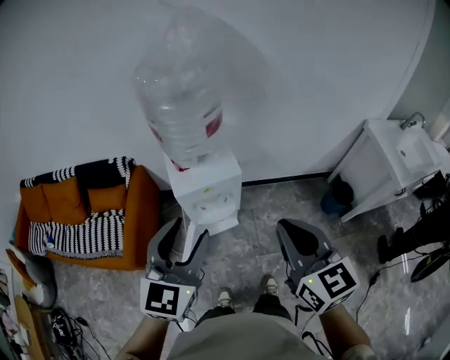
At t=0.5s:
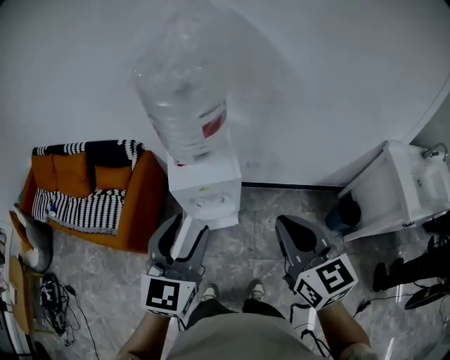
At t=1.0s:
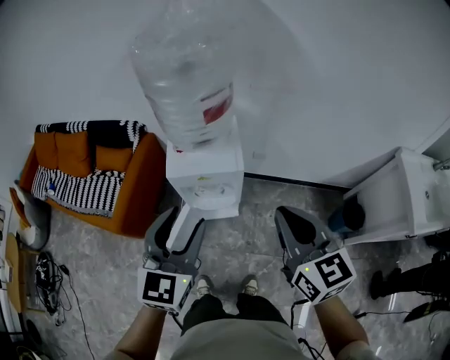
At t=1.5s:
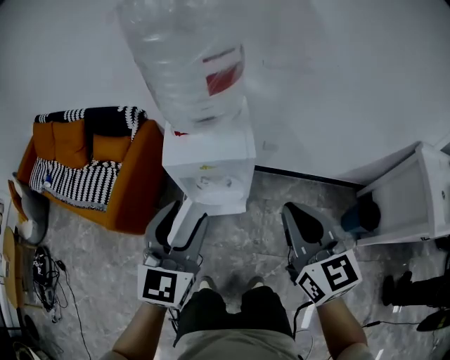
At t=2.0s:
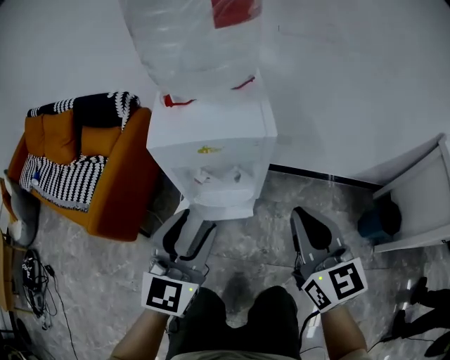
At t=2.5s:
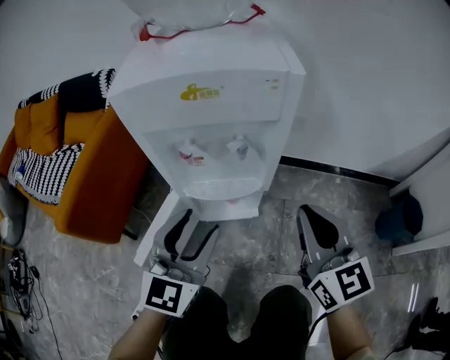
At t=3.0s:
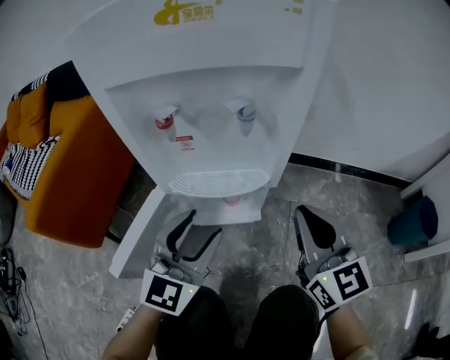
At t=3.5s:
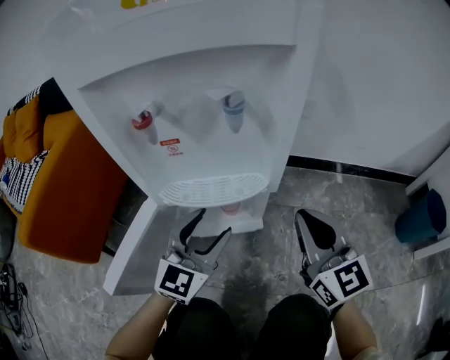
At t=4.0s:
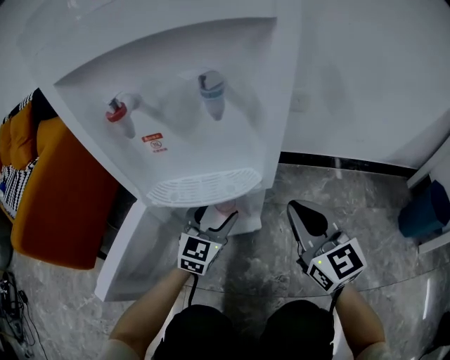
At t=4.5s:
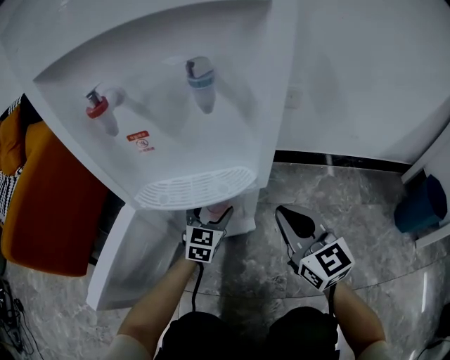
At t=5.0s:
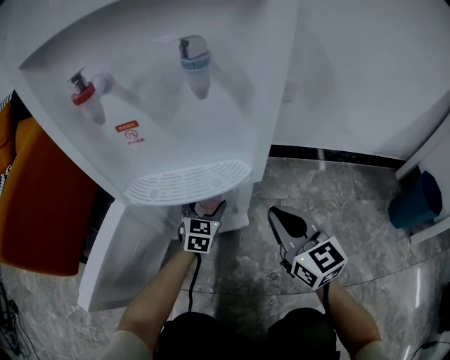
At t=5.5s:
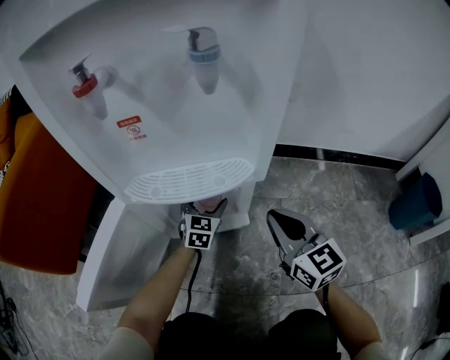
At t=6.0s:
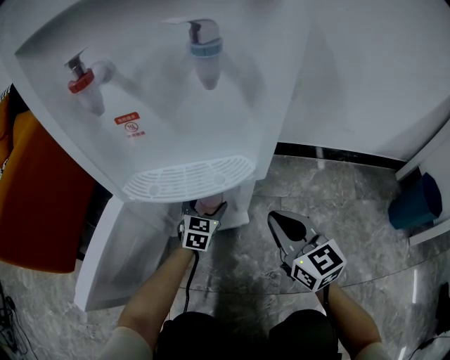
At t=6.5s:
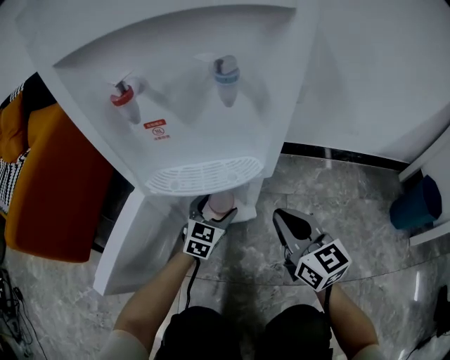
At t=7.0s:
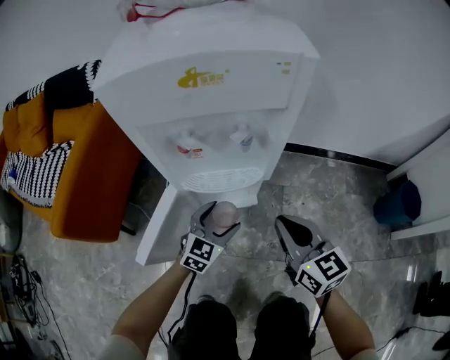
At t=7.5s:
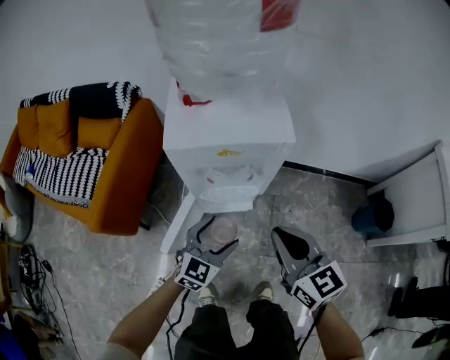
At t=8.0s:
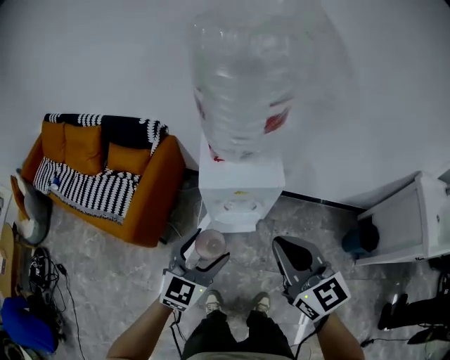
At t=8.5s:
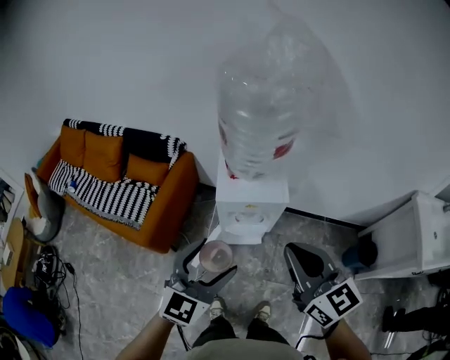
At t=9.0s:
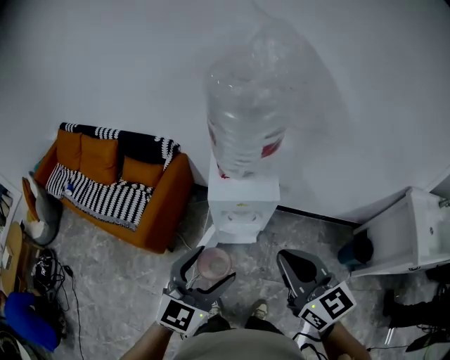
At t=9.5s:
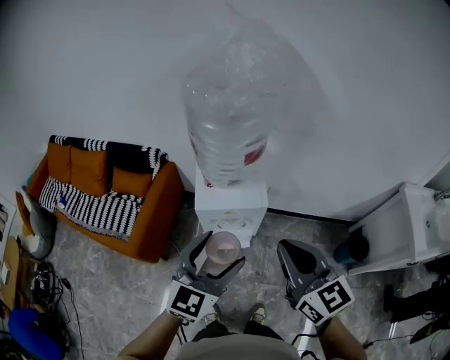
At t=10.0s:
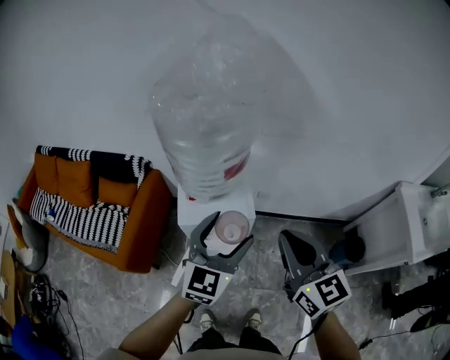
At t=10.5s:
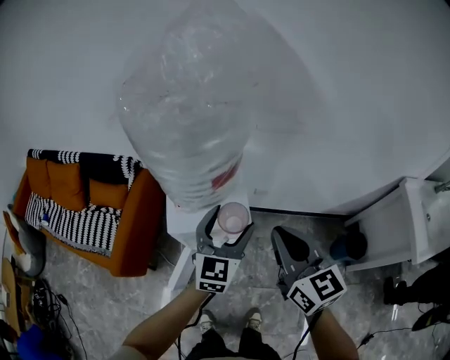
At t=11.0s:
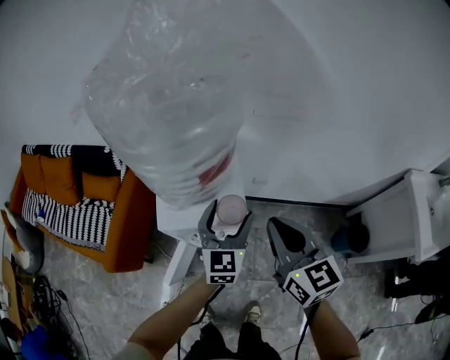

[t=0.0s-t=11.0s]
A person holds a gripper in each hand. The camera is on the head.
t=0.0s to t=2.0s: The right gripper shifts roughly 35 cm downward and forward, while the left gripper heads downward, covering about 35 cm.
t=2.0s to t=3.5s: Both grippers travel together downward, about 40 cm.
t=3.5s to t=5.5s: The right gripper goes roughly 15 cm downward. Meanwhile the left gripper shifts about 30 cm downward and forward.
t=5.5s to t=7.5s: The left gripper moves upward and backward, approximately 50 cm. The right gripper shifts some 40 cm upward.
t=7.5s to t=9.0s: The grippers both shift upward by roughly 40 cm.
t=9.0s to t=11.0s: The two grippers go about 30 cm forward, to the right and downward.

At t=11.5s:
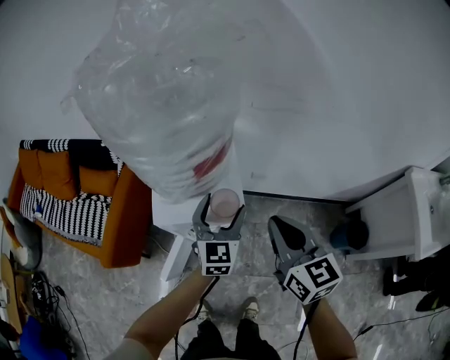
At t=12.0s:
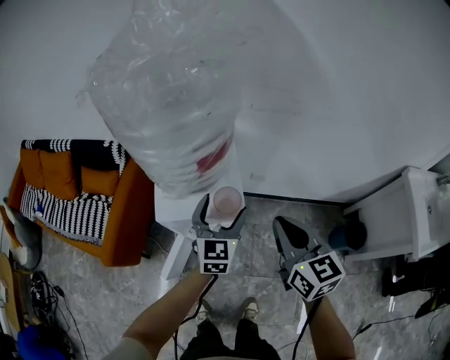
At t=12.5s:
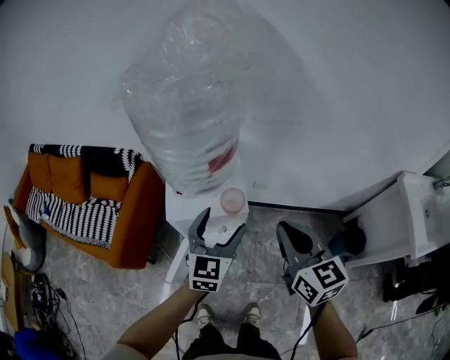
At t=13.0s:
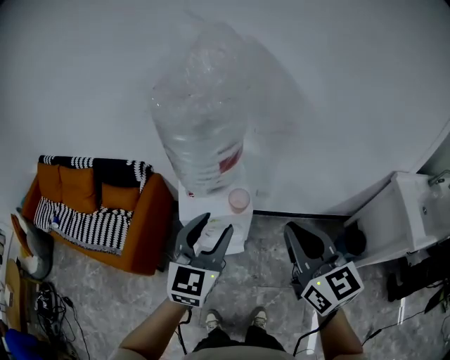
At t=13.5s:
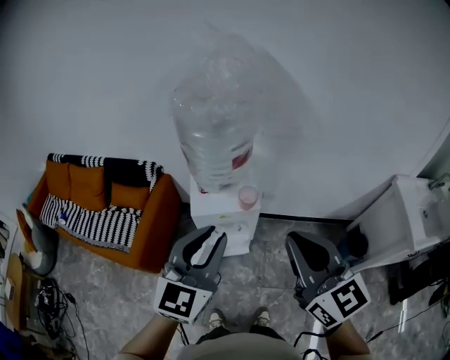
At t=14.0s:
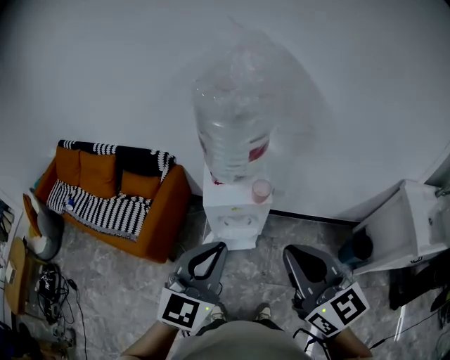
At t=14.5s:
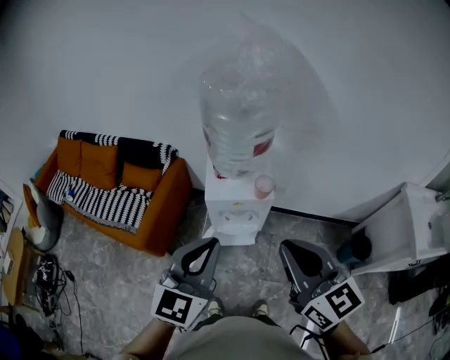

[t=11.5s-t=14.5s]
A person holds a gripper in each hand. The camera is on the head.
t=11.5s to t=13.0s: Both grippers move upward and backward, roughly 25 cm. The left gripper closes.
t=13.0s to t=14.5s: Both grippers travel together backward and to the left, about 15 cm. The left gripper closes up.

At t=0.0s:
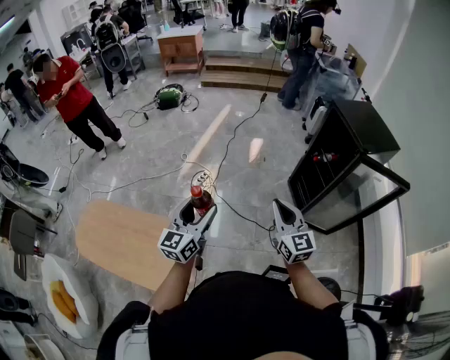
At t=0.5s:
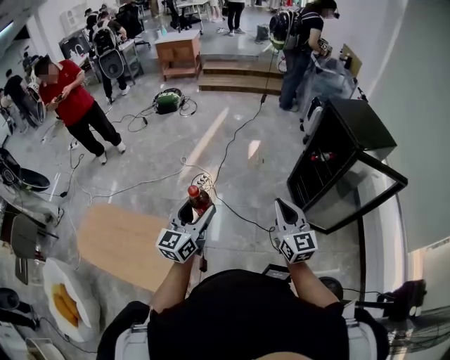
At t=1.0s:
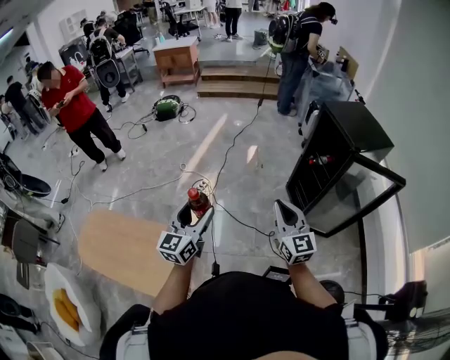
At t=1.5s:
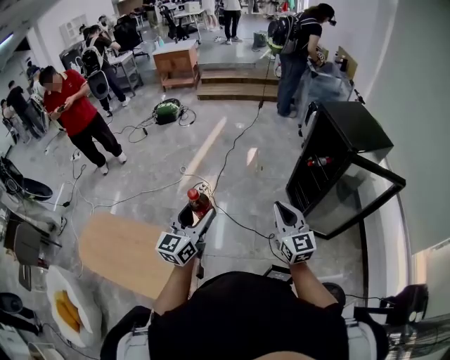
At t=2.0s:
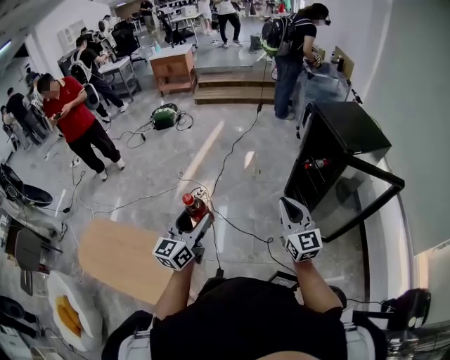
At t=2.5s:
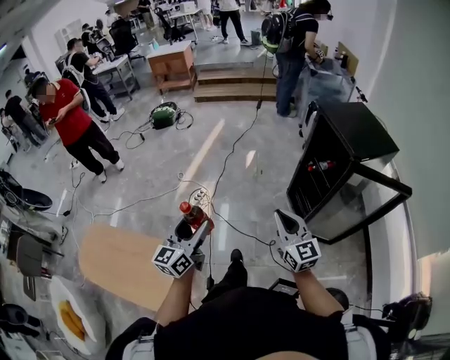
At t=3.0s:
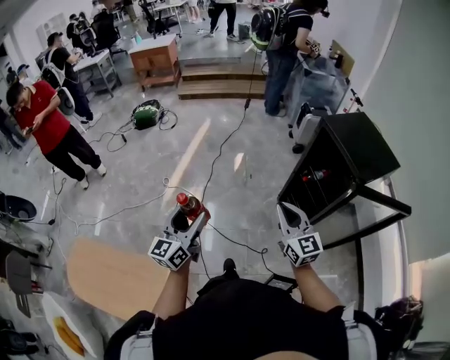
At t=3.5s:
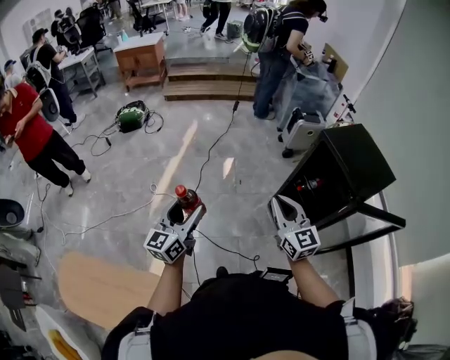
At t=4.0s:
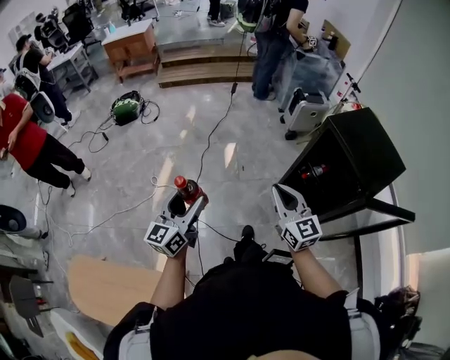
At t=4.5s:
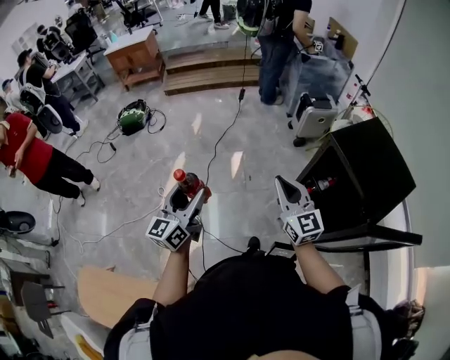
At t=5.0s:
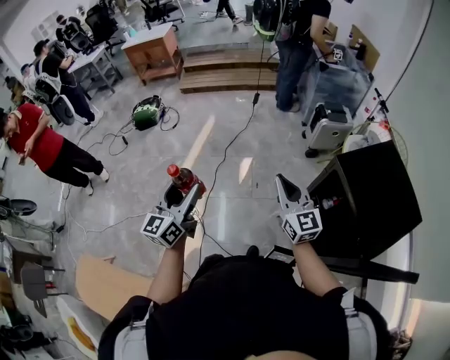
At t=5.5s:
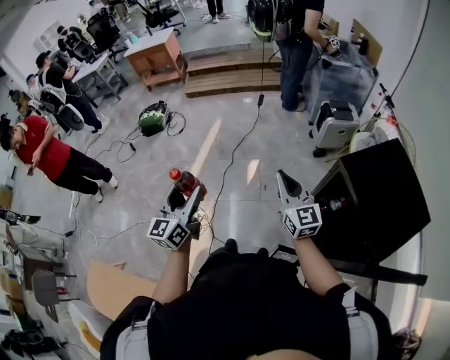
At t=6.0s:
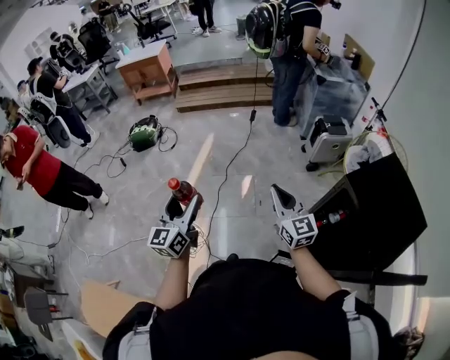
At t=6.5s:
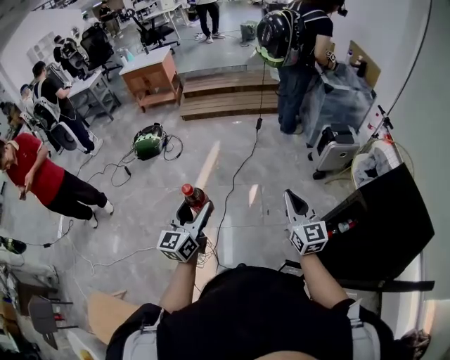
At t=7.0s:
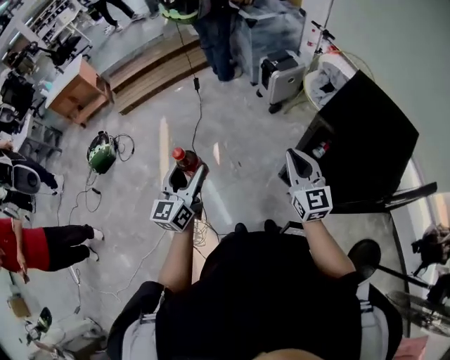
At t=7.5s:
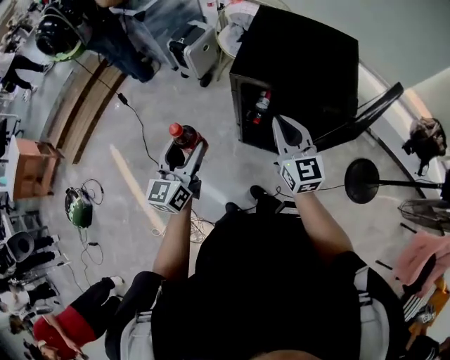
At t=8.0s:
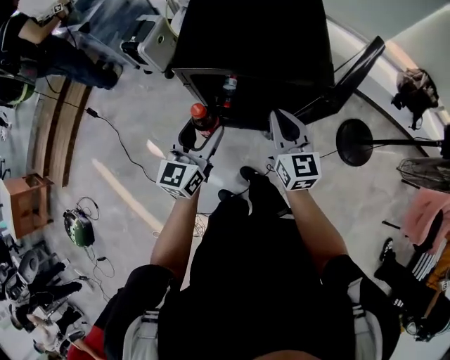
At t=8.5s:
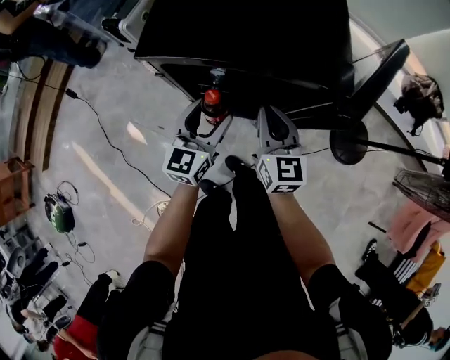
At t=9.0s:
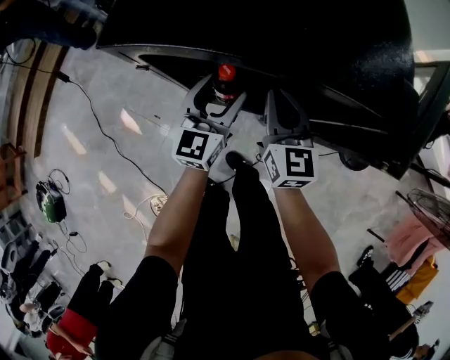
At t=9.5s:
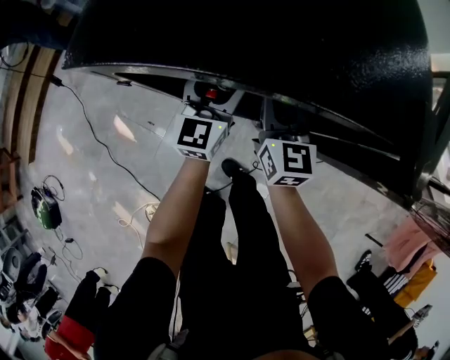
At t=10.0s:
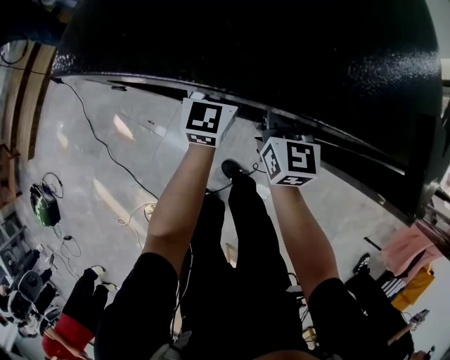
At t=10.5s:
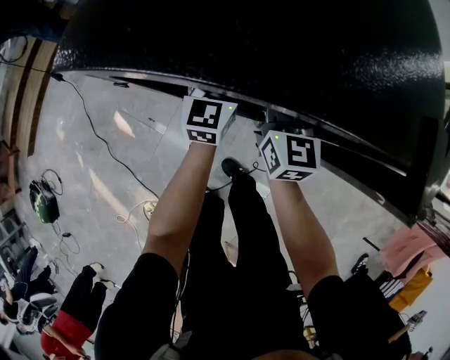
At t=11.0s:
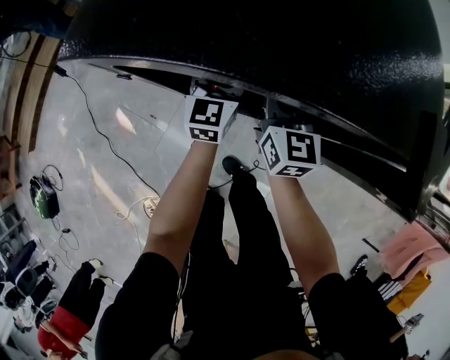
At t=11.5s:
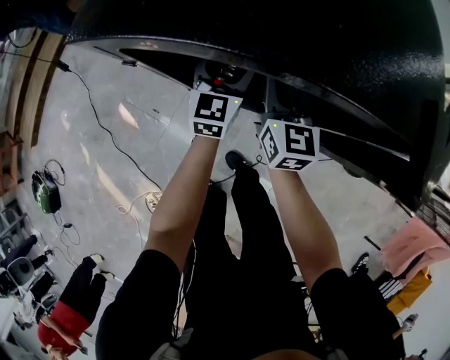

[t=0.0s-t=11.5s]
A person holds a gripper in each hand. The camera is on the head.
t=0.0s to t=2.0s: The left gripper goes roughly 5 cm to the right, while the right gripper moves to the right, about 10 cm.
t=2.0s to t=4.0s: Both grippers travel together forward, some 35 cm.
t=4.0s to t=6.0s: The grippers both shift forward by roughly 25 cm.
t=6.0s to t=7.5s: The left gripper shifts by approximately 35 cm, and turns by about 60 degrees; the right gripper shifts by roughly 30 cm, and swivels some 60 degrees.
t=7.5s to t=9.5s: The left gripper goes approximately 40 cm forward, downward and to the right, while the right gripper moves downward and forward, approximately 30 cm, and turns by some 20 degrees.
t=9.5s to t=11.5s: The grippers make only small movements.

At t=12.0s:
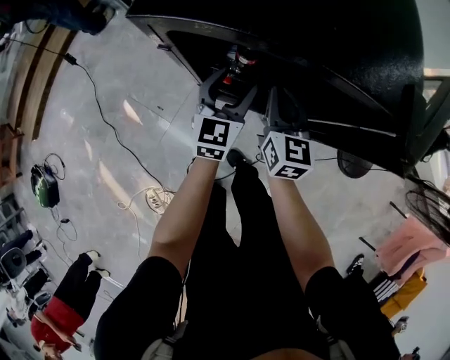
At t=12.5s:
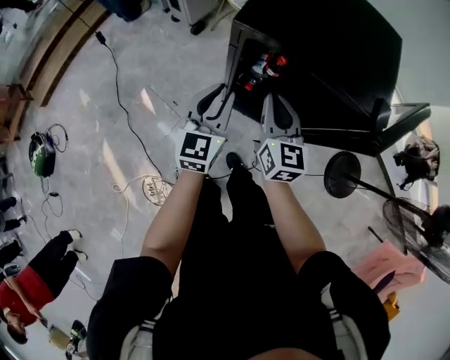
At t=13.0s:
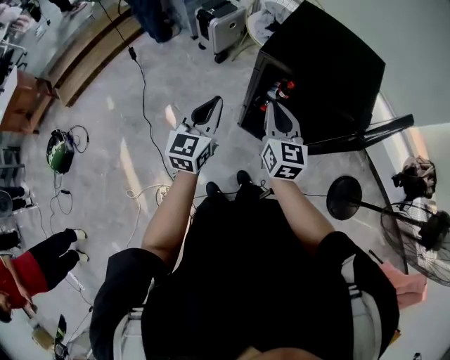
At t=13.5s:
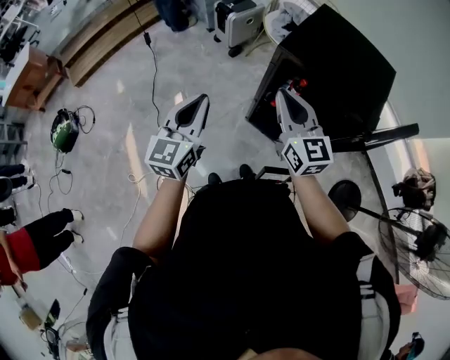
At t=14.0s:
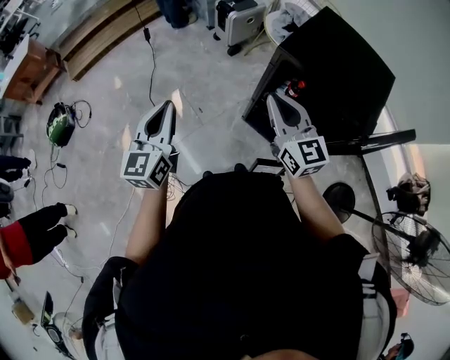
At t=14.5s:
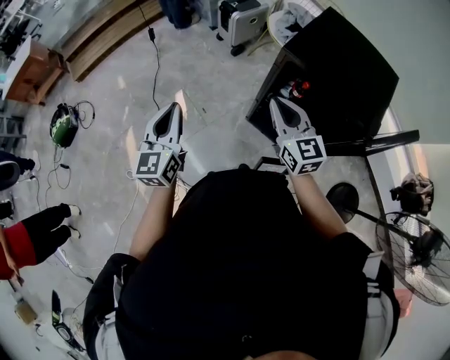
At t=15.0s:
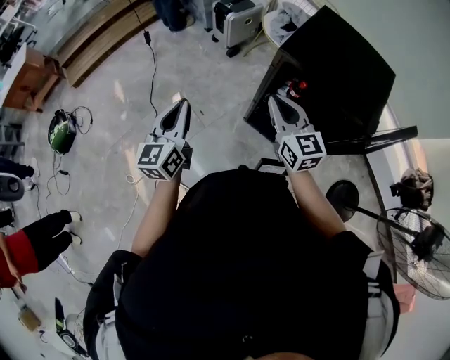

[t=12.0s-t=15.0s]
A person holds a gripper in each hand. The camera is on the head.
t=12.0s to t=13.5s: The right gripper goes about 30 cm upward, and changes its angle by some 40 degrees. Meanwhile the left gripper ends up approximately 50 cm from where it was, swivels about 20 degrees, and closes its fingers.
t=13.5s to t=15.0s: The right gripper is displaced downward by approximately 5 cm; the left gripper travels to the left by approximately 5 cm.
